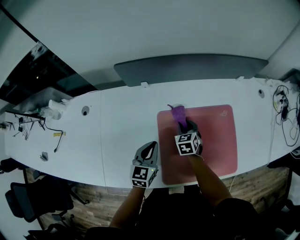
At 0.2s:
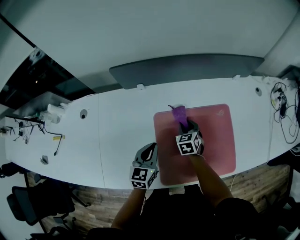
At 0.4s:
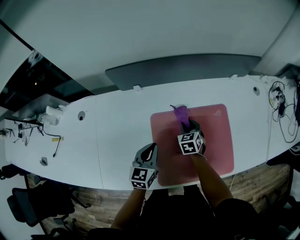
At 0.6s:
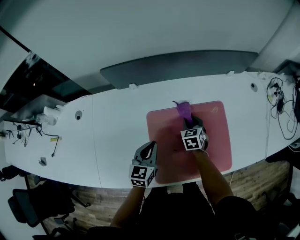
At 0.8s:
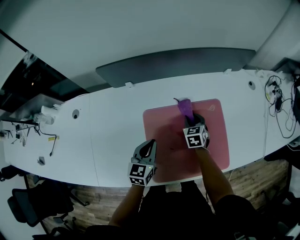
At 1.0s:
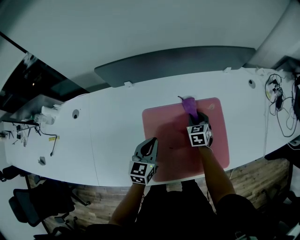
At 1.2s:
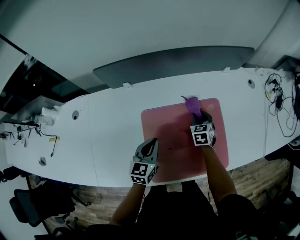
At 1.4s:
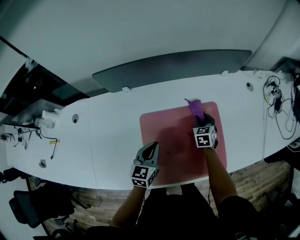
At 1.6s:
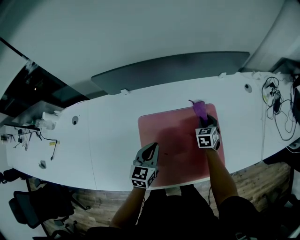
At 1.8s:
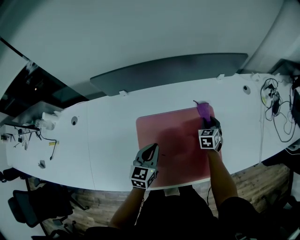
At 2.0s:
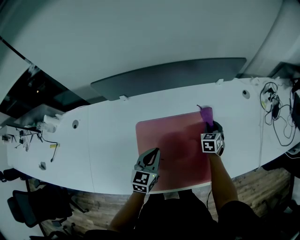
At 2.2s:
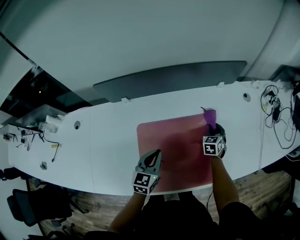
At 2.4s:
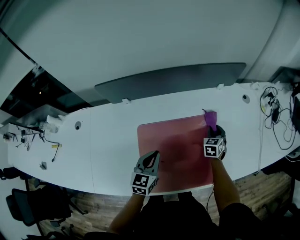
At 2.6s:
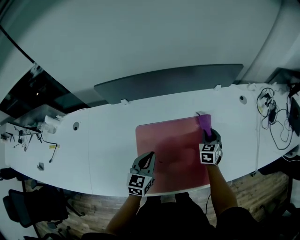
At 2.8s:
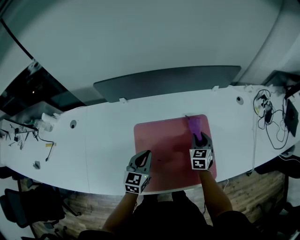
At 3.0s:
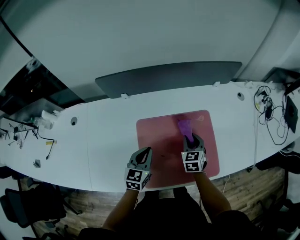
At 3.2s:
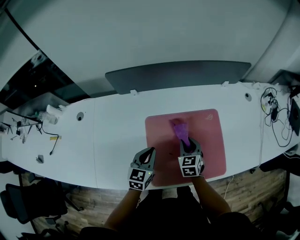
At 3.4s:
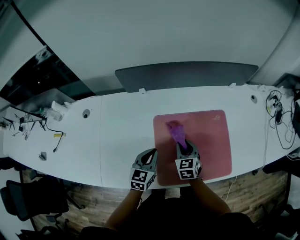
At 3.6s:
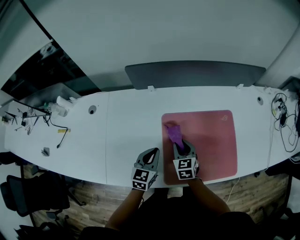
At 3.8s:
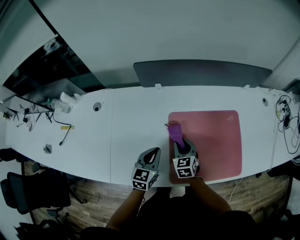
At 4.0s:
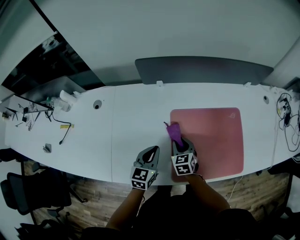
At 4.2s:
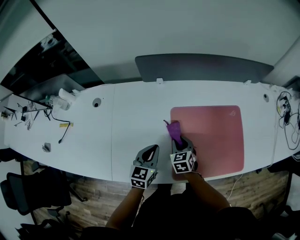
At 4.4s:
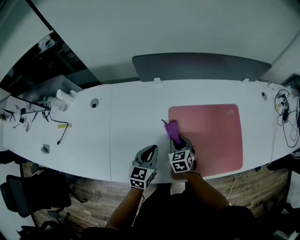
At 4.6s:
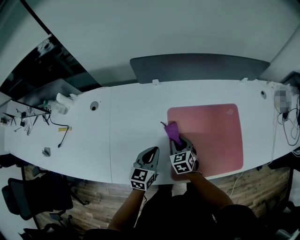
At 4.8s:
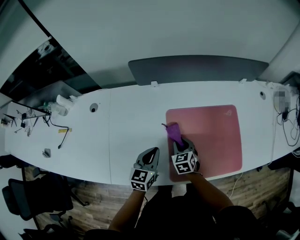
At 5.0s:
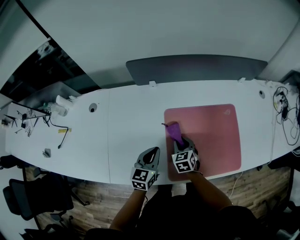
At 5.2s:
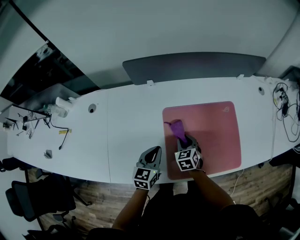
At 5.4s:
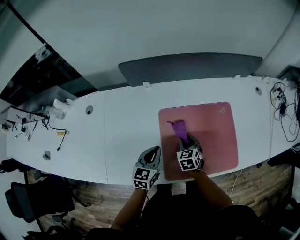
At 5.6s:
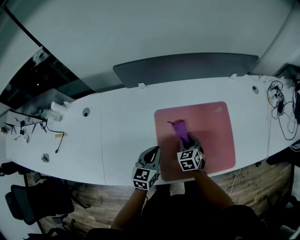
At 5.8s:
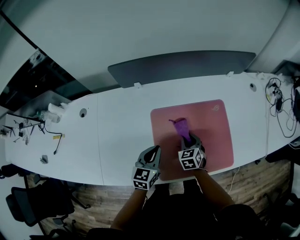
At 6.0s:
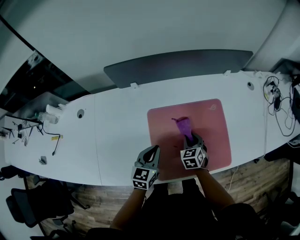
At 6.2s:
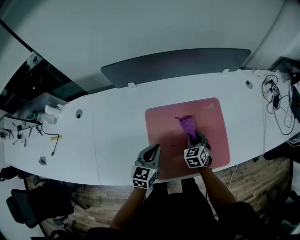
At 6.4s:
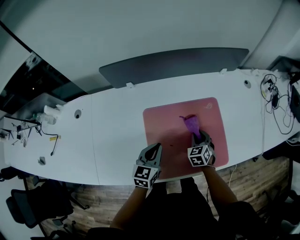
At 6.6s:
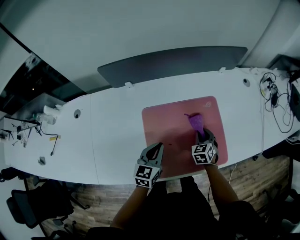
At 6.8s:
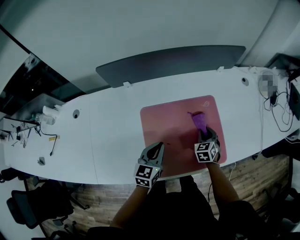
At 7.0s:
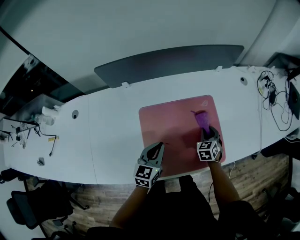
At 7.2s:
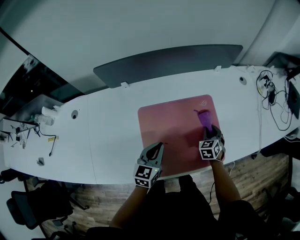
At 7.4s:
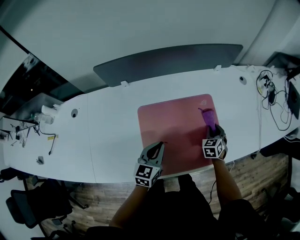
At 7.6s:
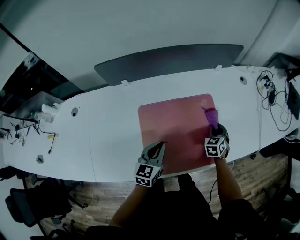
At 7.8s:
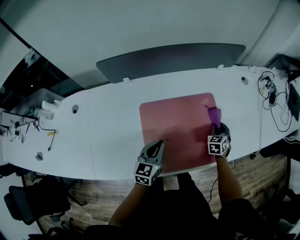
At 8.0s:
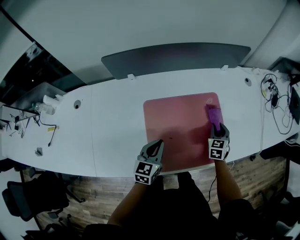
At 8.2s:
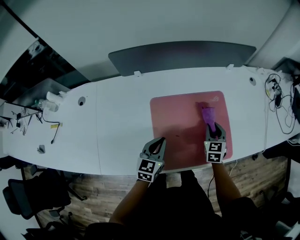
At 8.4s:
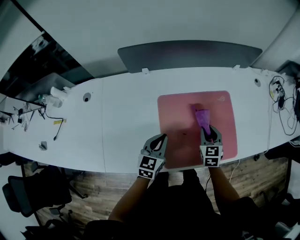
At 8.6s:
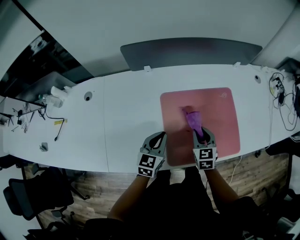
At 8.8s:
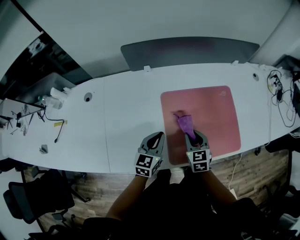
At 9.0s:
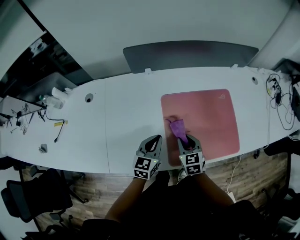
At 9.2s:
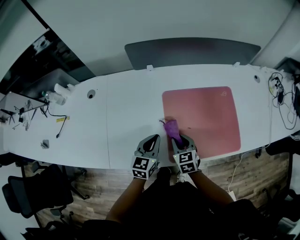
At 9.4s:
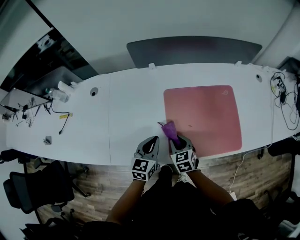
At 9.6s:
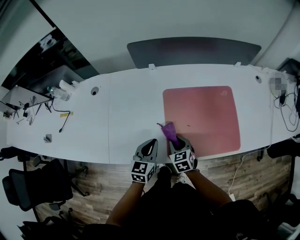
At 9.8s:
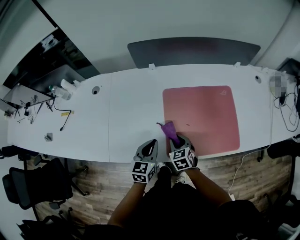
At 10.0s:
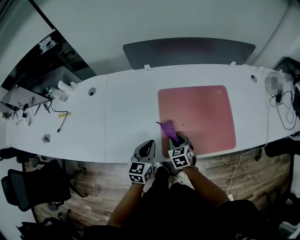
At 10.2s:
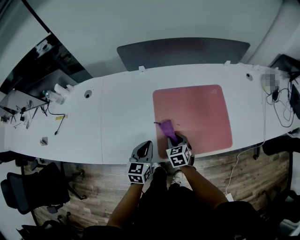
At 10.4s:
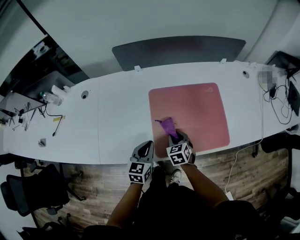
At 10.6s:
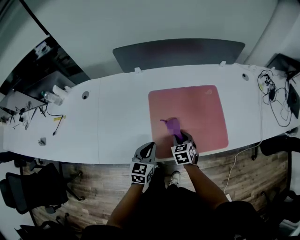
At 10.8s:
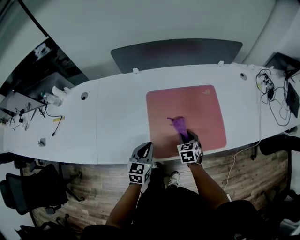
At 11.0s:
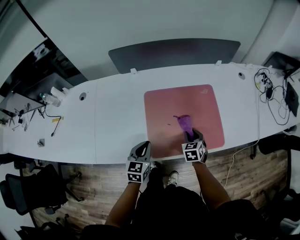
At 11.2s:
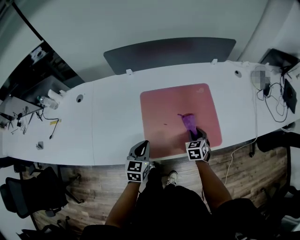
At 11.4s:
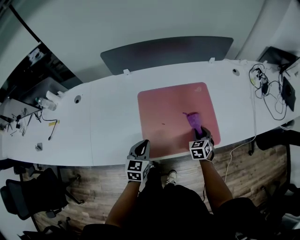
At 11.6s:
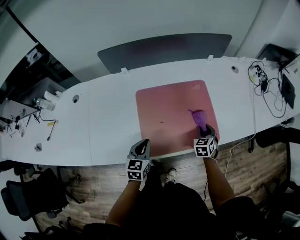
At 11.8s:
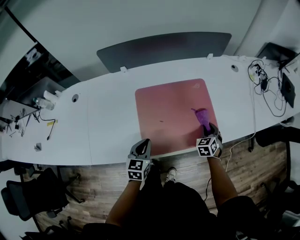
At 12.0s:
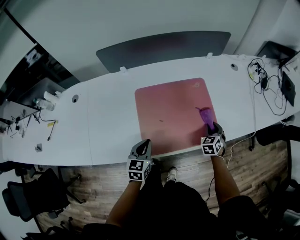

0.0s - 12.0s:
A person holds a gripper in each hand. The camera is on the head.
0.0s - 1.6s: The left gripper is displaced to the right by approximately 10 cm. The right gripper travels to the right by some 20 cm.
1.6s - 3.0s: The right gripper heads backward, upward and to the left, covering roughly 15 cm.
3.0s - 4.4s: The left gripper moves to the left, approximately 15 cm, while the right gripper shifts about 25 cm to the left.
4.4s - 6.0s: The right gripper is displaced to the right by about 15 cm, while the left gripper goes about 10 cm to the right.
6.0s - 7.6s: The right gripper heads to the right, covering approximately 20 cm; the left gripper travels to the right by about 5 cm.
7.6s - 9.0s: The left gripper is displaced to the left and backward by roughly 15 cm; the right gripper moves to the left and backward, approximately 35 cm, and rotates roughly 30 degrees.
9.0s - 10.4s: The right gripper moves roughly 5 cm; the left gripper moves backward, approximately 5 cm.
10.4s - 12.0s: The right gripper travels to the right by about 30 cm, and rotates some 30 degrees. Meanwhile the left gripper shifts approximately 5 cm to the right.

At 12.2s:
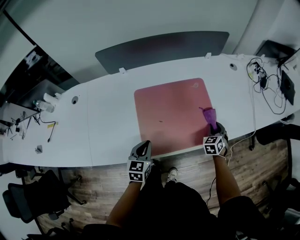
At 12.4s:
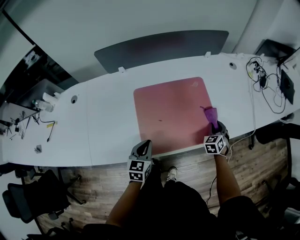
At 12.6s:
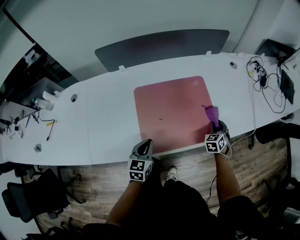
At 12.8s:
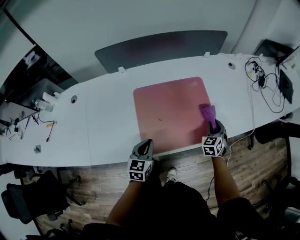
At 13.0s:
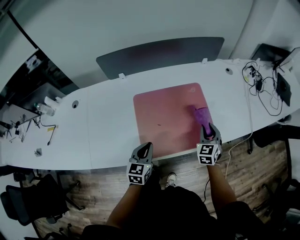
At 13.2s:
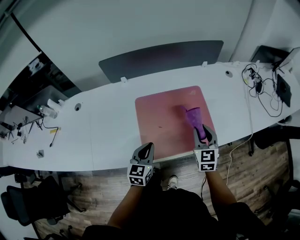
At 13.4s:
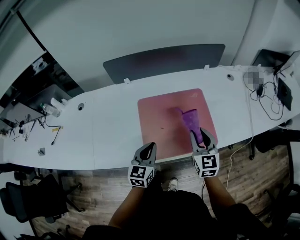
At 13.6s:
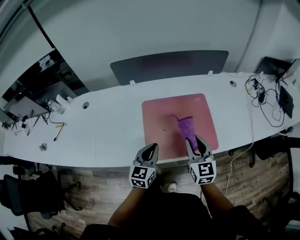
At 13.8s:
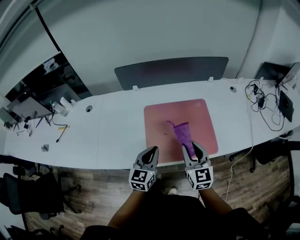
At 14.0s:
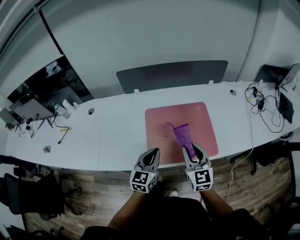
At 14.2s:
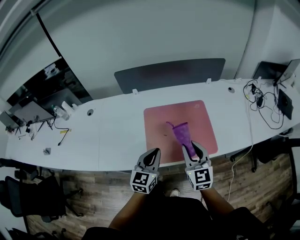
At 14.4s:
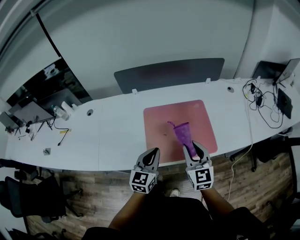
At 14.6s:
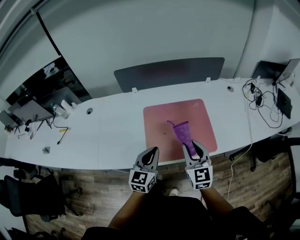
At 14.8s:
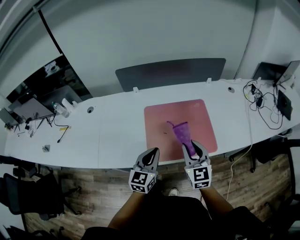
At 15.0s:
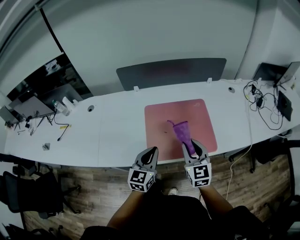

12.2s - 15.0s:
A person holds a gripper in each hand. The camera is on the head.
12.2s - 13.6s: The right gripper heads upward, to the left and backward, covering approximately 25 cm, and turns by some 50 degrees, while the left gripper moves upward, approximately 10 cm.
13.6s - 15.0s: The grippers move only a little.

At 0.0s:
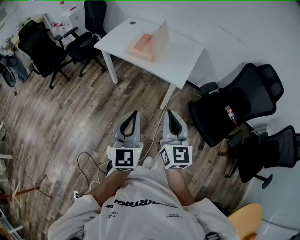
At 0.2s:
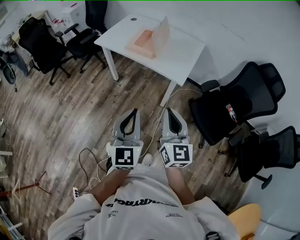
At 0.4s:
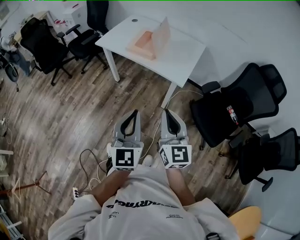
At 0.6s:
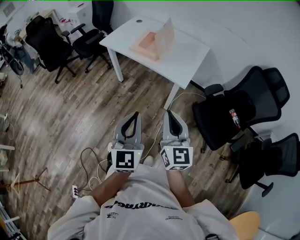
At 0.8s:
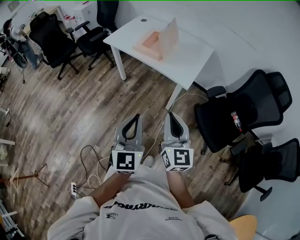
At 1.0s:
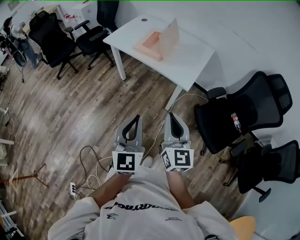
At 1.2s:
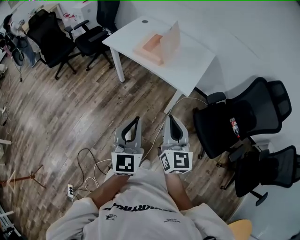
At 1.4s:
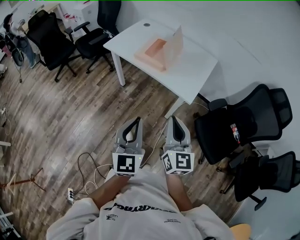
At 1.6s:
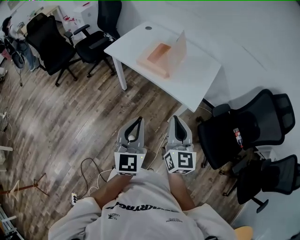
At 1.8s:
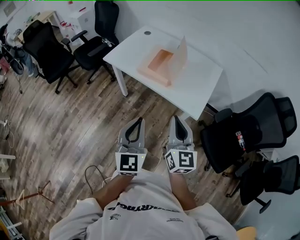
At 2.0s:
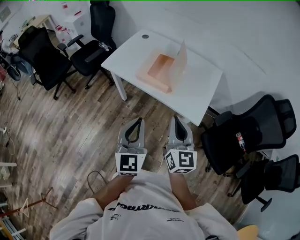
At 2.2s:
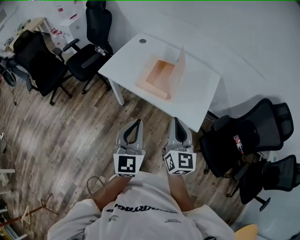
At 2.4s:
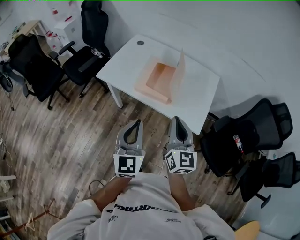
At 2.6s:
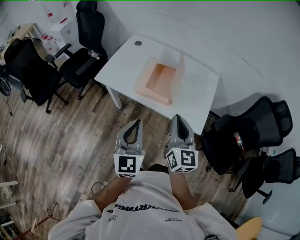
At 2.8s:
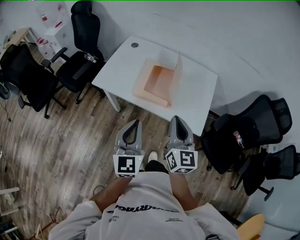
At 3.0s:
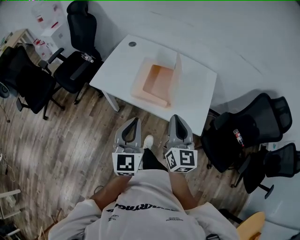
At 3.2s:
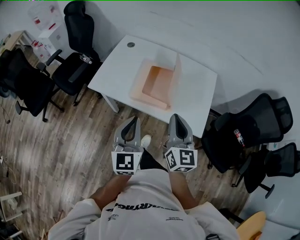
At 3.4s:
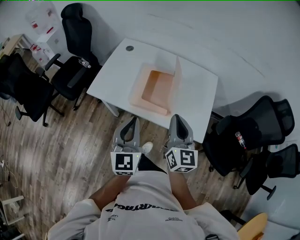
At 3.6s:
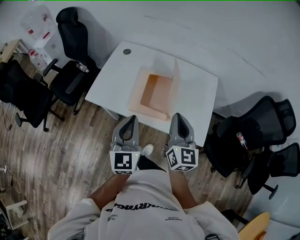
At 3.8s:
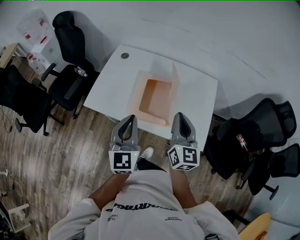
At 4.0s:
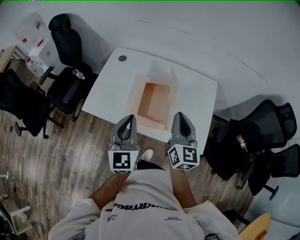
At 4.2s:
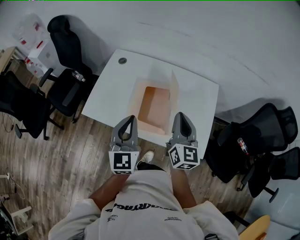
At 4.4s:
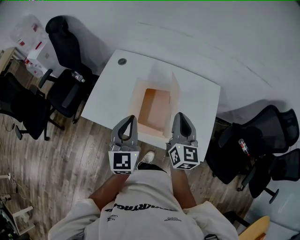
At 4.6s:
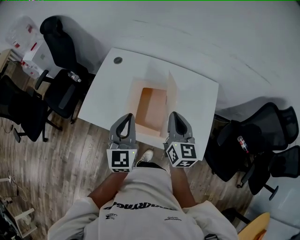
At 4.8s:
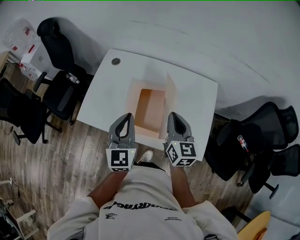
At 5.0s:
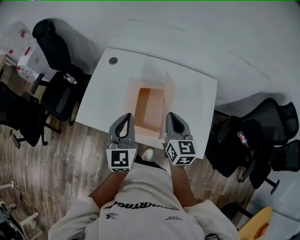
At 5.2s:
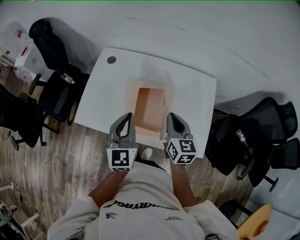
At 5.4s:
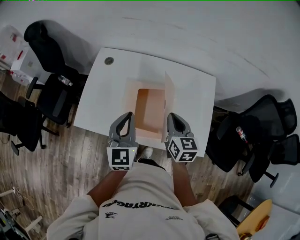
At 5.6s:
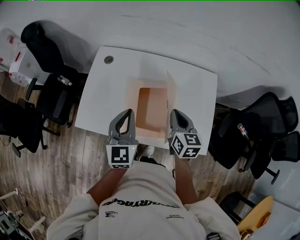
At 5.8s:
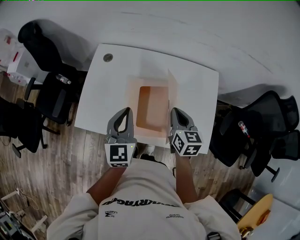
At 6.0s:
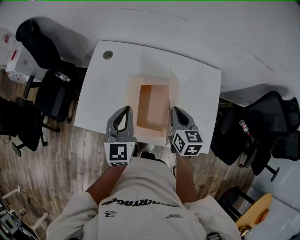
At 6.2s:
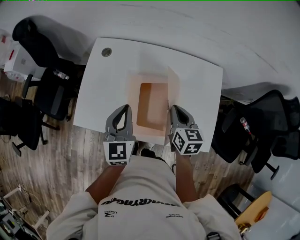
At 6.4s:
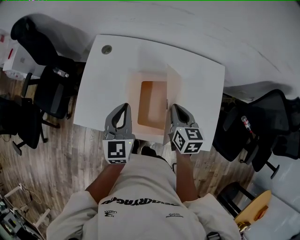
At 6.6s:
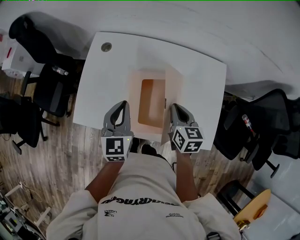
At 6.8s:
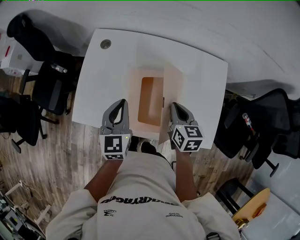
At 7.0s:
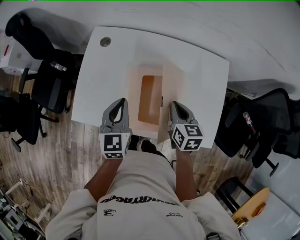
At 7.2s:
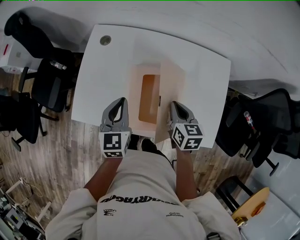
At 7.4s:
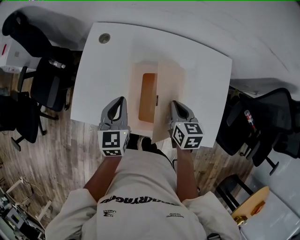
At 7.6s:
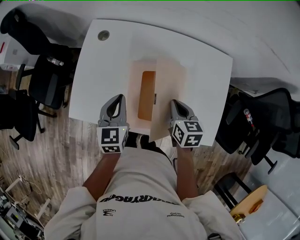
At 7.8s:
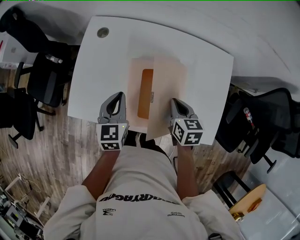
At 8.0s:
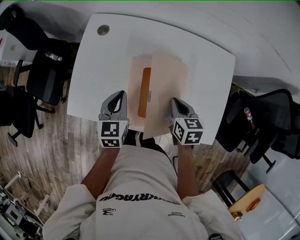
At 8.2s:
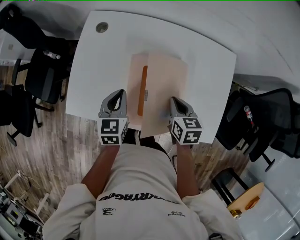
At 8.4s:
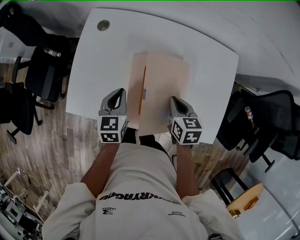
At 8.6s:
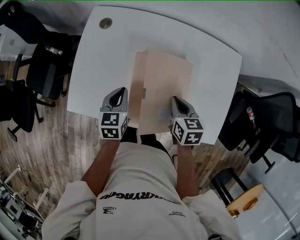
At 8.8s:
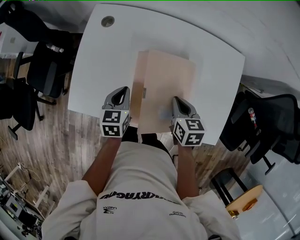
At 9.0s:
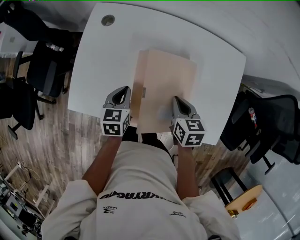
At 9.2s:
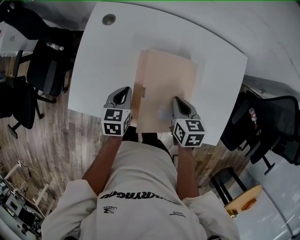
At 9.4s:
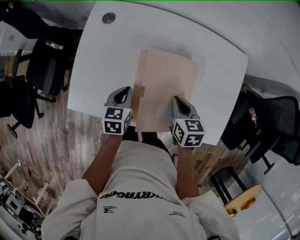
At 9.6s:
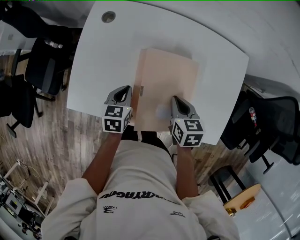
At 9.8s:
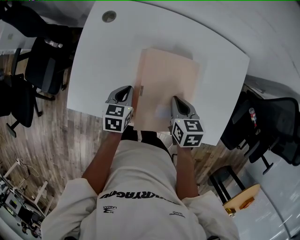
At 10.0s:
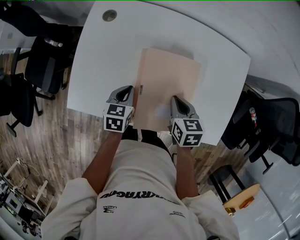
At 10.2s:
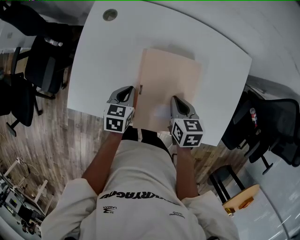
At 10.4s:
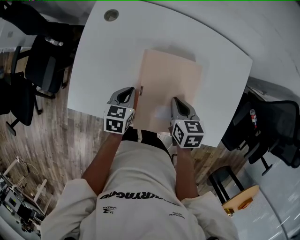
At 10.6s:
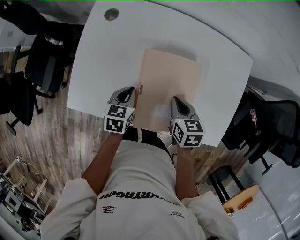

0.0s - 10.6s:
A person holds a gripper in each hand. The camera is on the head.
0.0s - 1.6s: The grippers both shift forward by approximately 15 cm.
1.6s - 3.0s: The right gripper is displaced forward by approximately 25 cm; the left gripper goes approximately 30 cm forward and to the left.
3.0s - 4.6s: The two grippers go roughly 25 cm forward.
4.6s - 6.0s: The right gripper moves downward and forward, some 10 cm, and turns by about 20 degrees, while the left gripper is displaced forward and downward by about 10 cm.
6.0s - 7.6s: Both grippers travel together downward, roughly 10 cm.
7.6s - 9.0s: The left gripper travels downward by some 10 cm.
9.0s - 10.6s: The grippers stay close to where they were, moving slightly.
